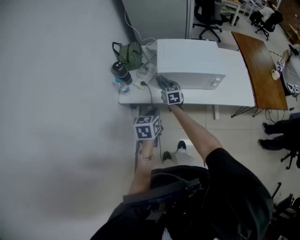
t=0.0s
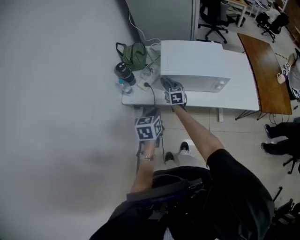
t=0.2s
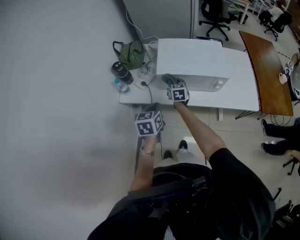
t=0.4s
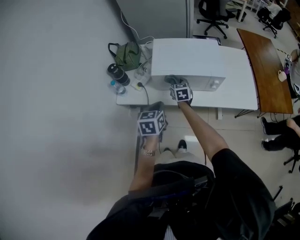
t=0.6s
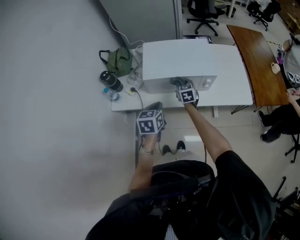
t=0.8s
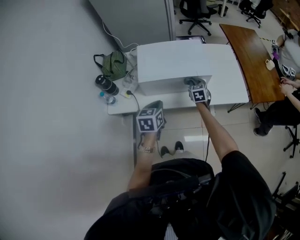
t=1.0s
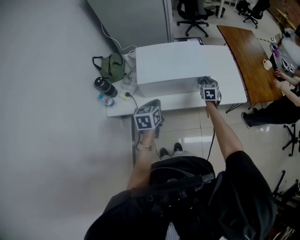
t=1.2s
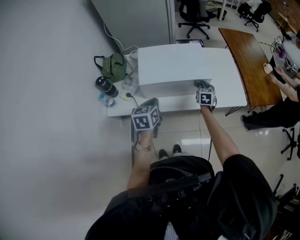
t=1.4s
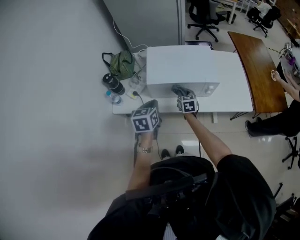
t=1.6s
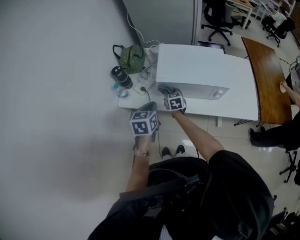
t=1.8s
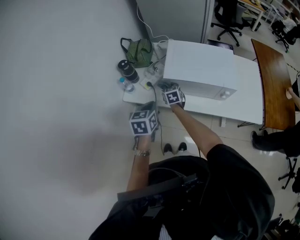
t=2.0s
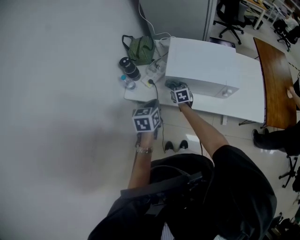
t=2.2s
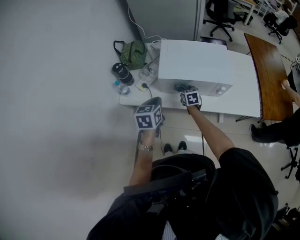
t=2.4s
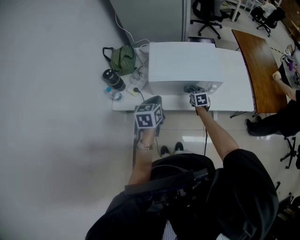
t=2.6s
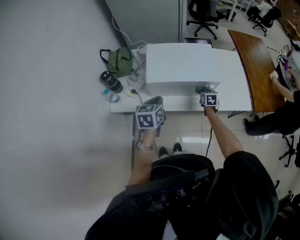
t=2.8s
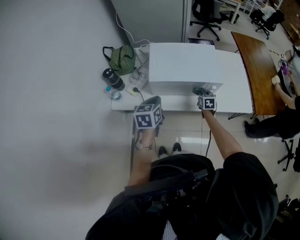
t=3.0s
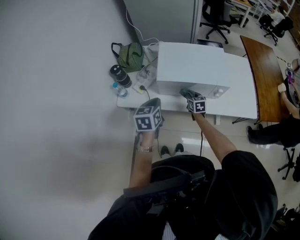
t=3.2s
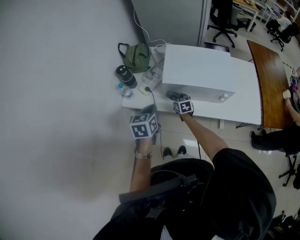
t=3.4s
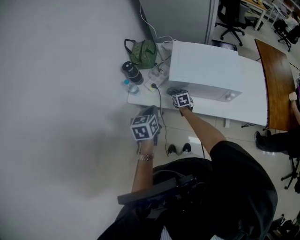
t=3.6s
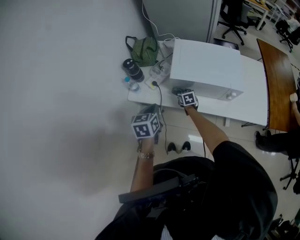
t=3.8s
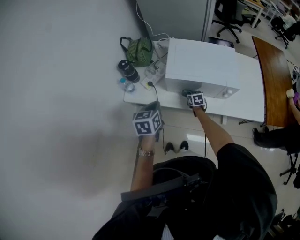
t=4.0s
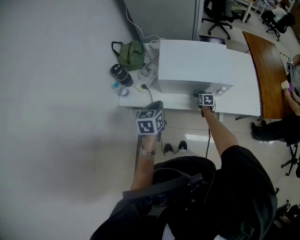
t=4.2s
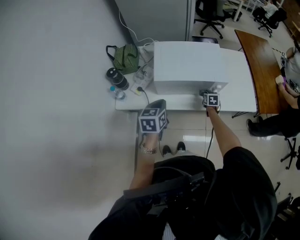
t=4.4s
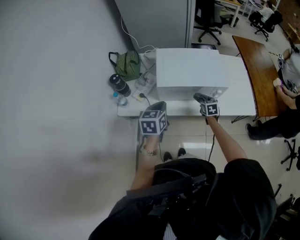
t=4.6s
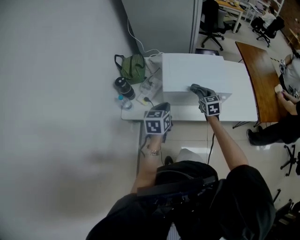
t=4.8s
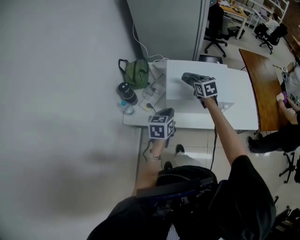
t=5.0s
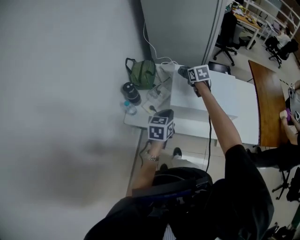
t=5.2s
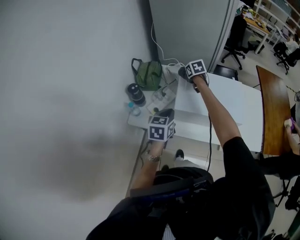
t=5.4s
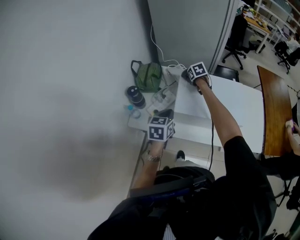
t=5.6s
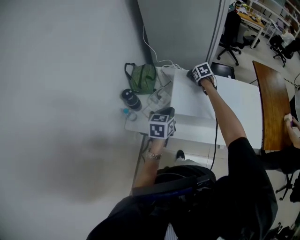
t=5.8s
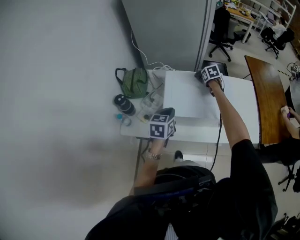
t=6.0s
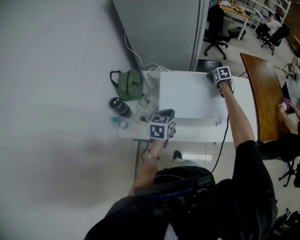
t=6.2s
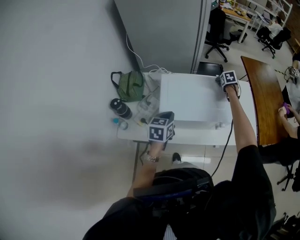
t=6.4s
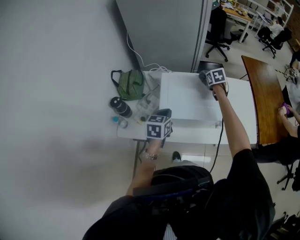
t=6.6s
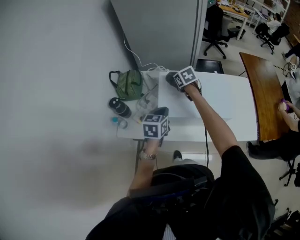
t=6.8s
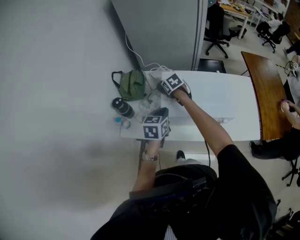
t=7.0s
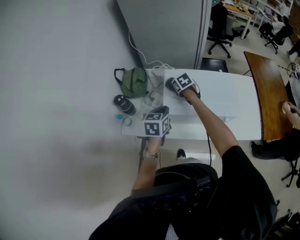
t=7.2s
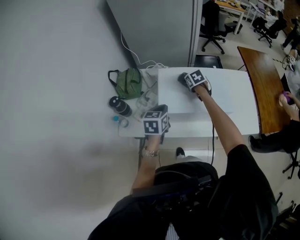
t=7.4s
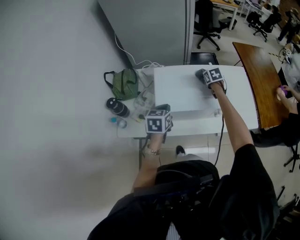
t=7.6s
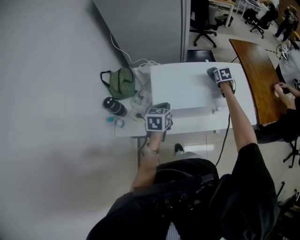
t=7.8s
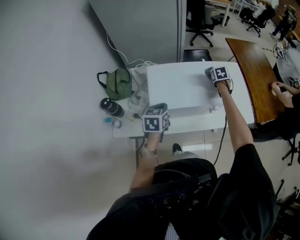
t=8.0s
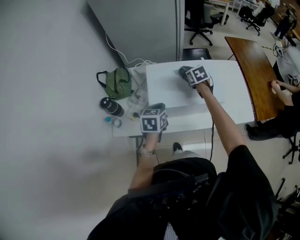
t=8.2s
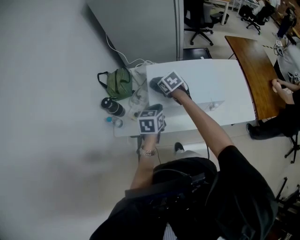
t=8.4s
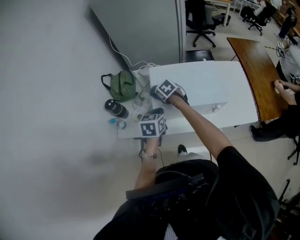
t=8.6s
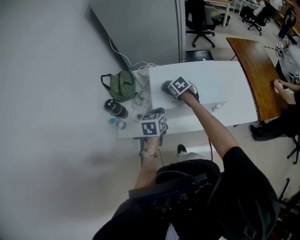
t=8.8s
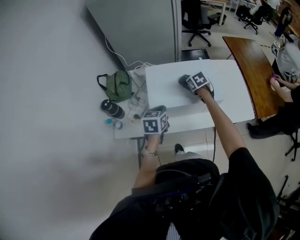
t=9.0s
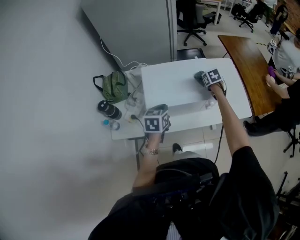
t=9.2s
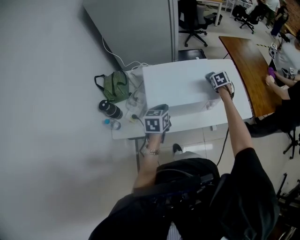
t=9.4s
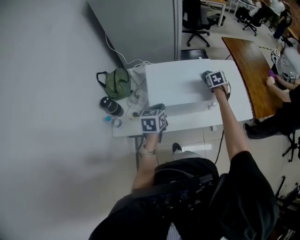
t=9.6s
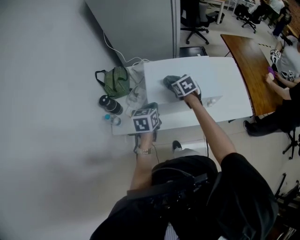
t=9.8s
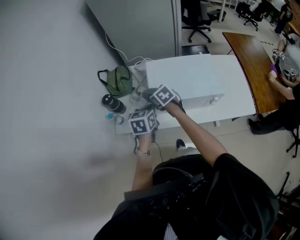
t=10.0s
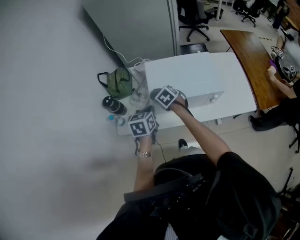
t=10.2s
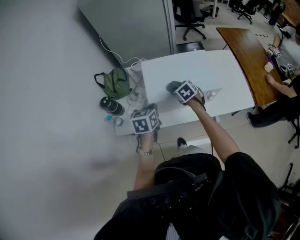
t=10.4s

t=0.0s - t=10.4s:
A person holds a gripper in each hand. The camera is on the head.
t=0.0s - t=1.4s: The right gripper shifts approximately 35 cm to the right, and changes its angle by some 30 degrees. The left gripper goes about 15 cm forward and to the right.
t=1.4s - t=3.0s: The right gripper moves downward, roughly 10 cm.
t=3.0s - t=4.4s: The right gripper is displaced downward by some 5 cm.
t=4.4s - t=6.0s: The left gripper shifts approximately 15 cm forward; the right gripper moves forward and upward, about 35 cm.
t=7.4s - t=9.0s: The left gripper ends up about 5 cm from where it was.

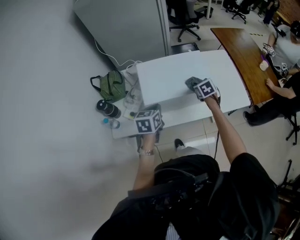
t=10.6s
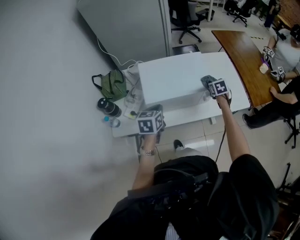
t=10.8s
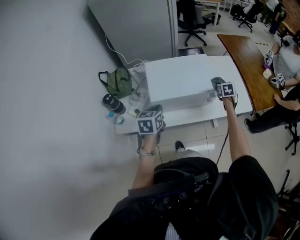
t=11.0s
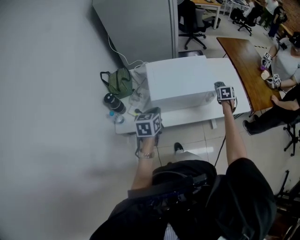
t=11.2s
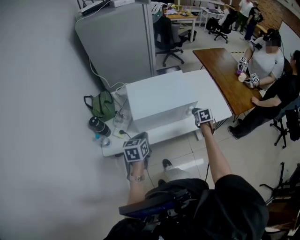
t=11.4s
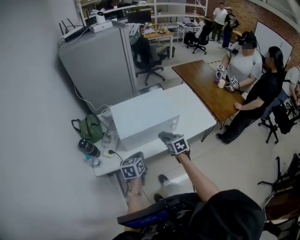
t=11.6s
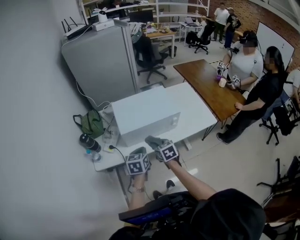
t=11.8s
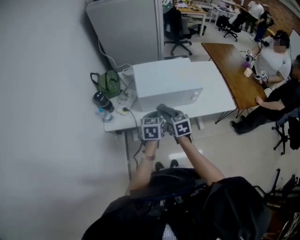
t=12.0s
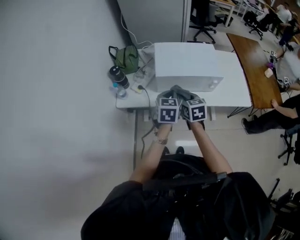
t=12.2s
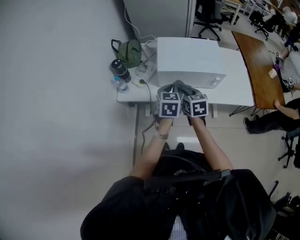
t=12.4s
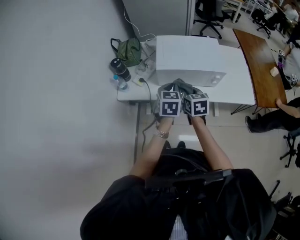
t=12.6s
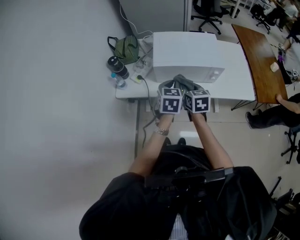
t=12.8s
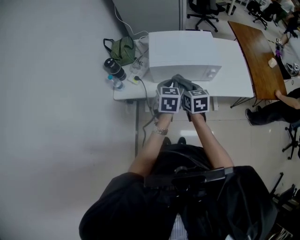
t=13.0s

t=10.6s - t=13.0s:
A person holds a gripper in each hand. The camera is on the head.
t=10.6s - t=11.8s: The left gripper goes some 15 cm backward and to the right; the right gripper moves backward, approximately 25 cm, and swivels about 20 degrees.
t=11.8s - t=13.0s: The left gripper changes place by roughly 5 cm.

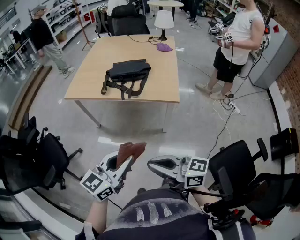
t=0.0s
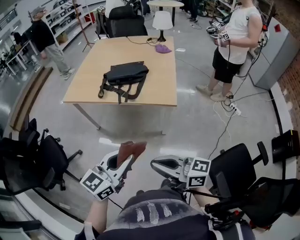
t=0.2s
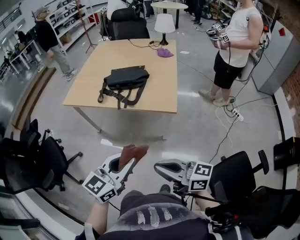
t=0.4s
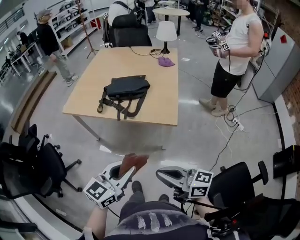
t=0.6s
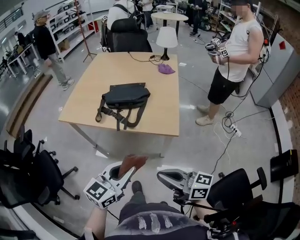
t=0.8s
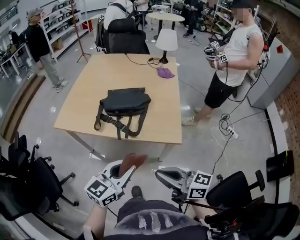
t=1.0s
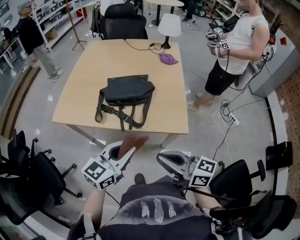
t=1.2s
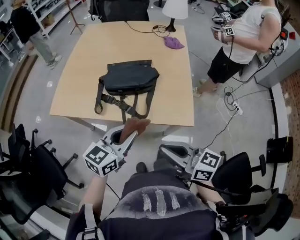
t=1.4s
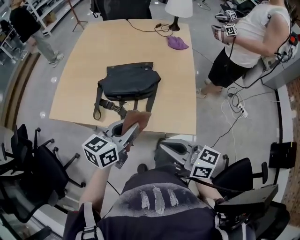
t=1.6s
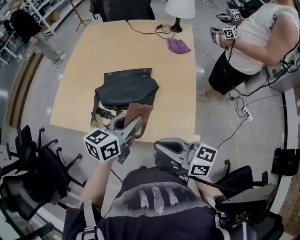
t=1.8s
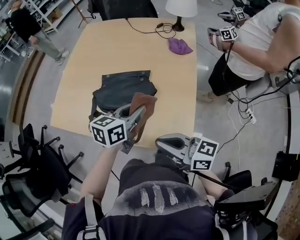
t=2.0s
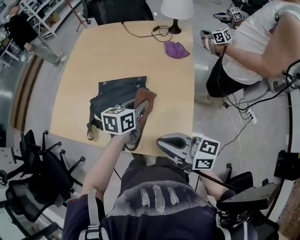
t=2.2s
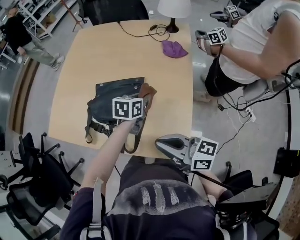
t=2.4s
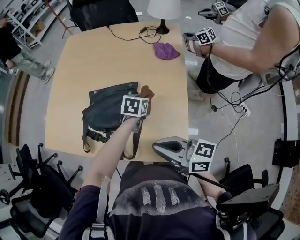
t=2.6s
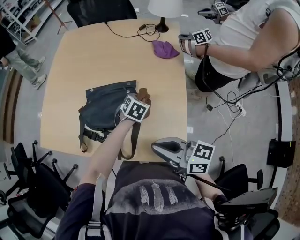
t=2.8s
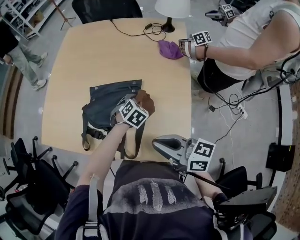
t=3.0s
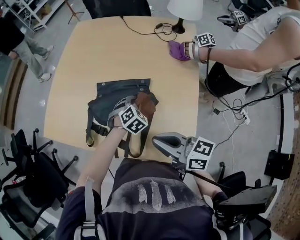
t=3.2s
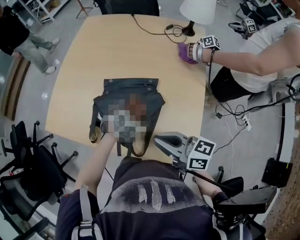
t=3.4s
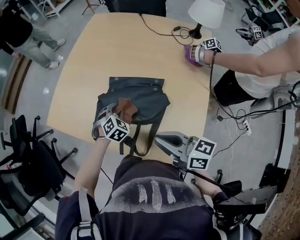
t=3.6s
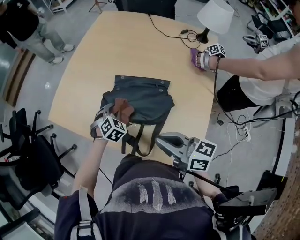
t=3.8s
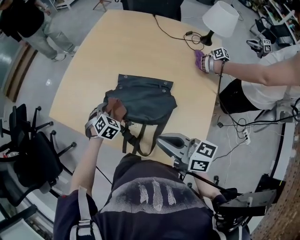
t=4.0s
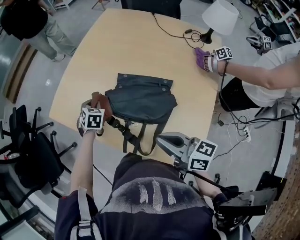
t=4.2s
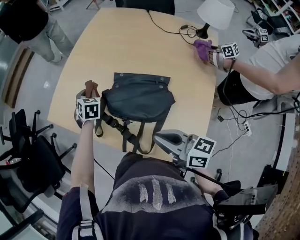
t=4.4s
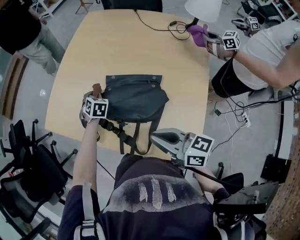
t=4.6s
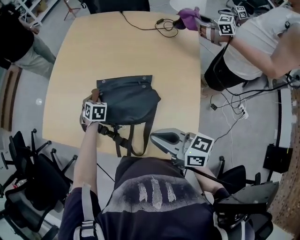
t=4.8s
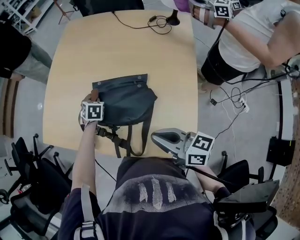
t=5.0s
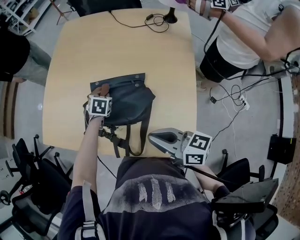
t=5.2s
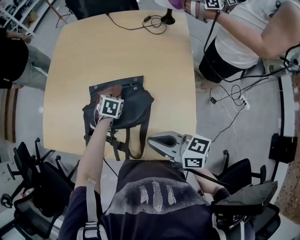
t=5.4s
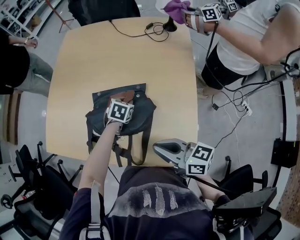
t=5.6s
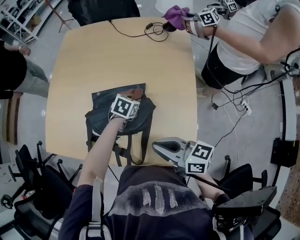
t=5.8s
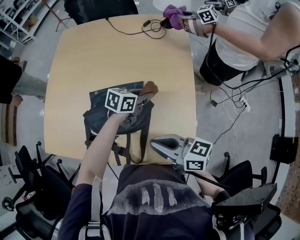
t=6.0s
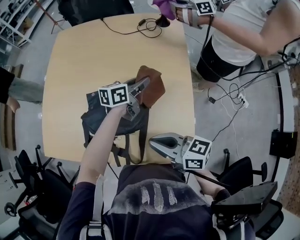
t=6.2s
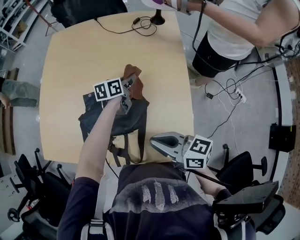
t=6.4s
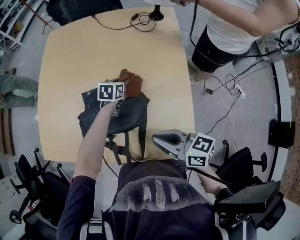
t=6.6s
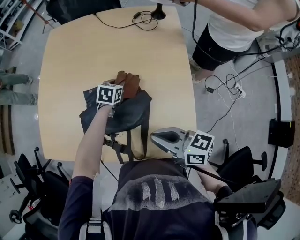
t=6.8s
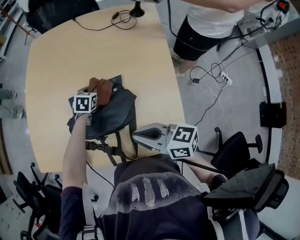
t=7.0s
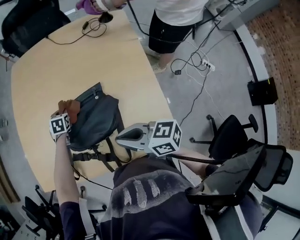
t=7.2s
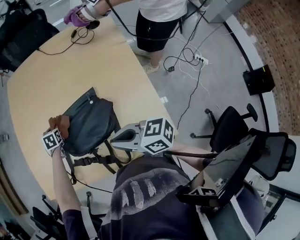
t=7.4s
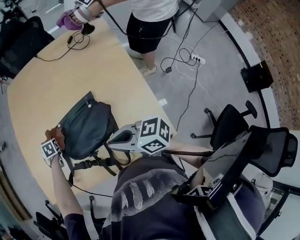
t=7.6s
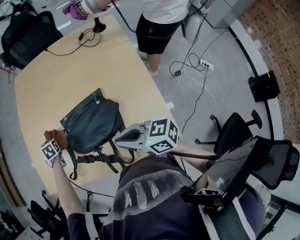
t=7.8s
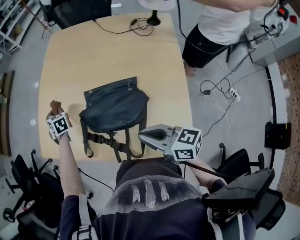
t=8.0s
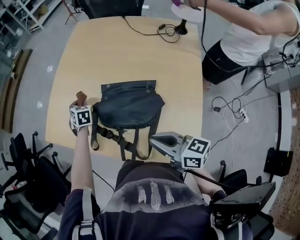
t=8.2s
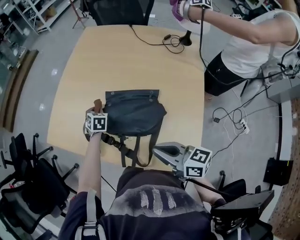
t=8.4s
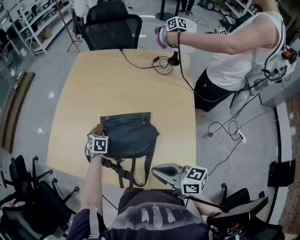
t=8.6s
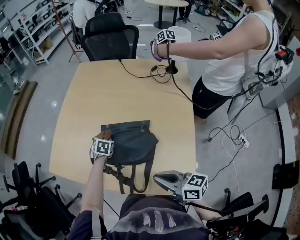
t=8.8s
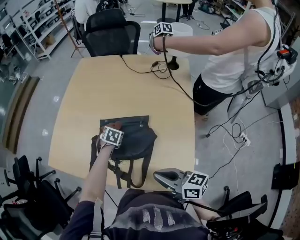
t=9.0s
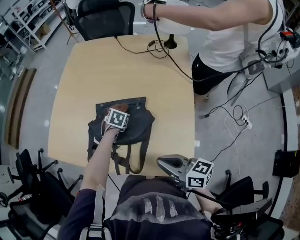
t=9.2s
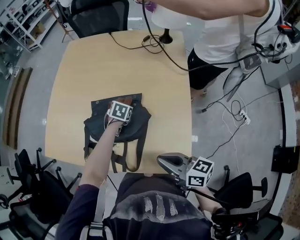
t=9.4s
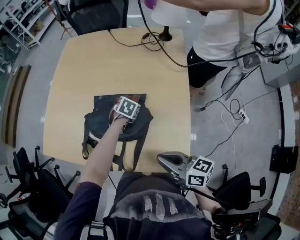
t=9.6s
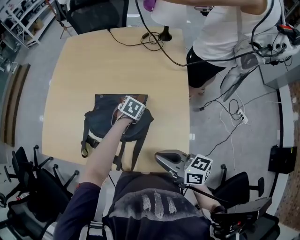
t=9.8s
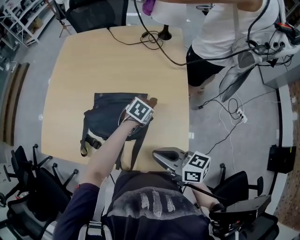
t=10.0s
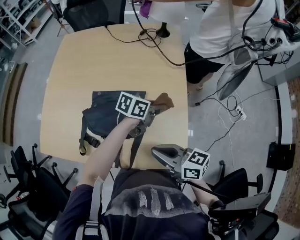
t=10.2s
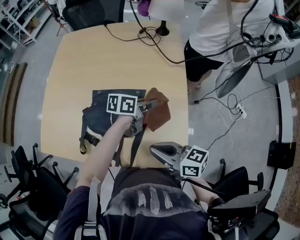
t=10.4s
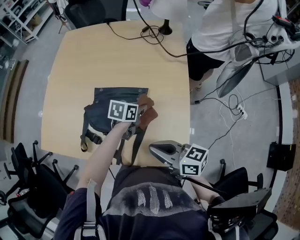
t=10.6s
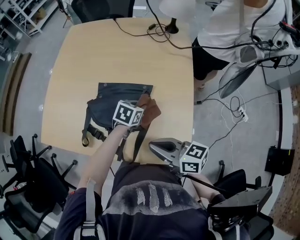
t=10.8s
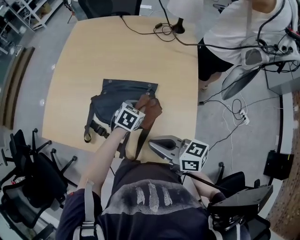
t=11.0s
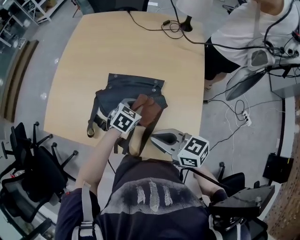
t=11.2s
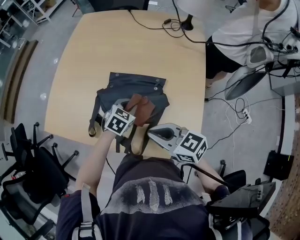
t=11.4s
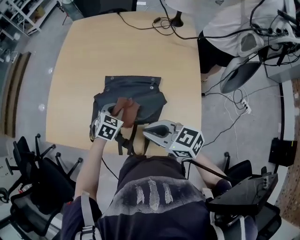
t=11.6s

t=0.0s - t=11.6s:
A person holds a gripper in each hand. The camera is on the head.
t=0.0s - t=1.4s: The grippers both shift forward by approximately 35 cm.
t=1.4s - t=2.8s: The right gripper goes about 25 cm forward and to the right. The left gripper goes some 50 cm forward, to the right and downward, and tilts its fingers about 40 degrees downward.
t=2.8s - t=4.4s: The left gripper shifts by roughly 40 cm, and turns by some 40 degrees. Meanwhile the right gripper changes place by approximately 10 cm.
t=4.4s - t=5.8s: The left gripper moves some 35 cm, and changes its angle by roughly 50 degrees. Meanwhile the right gripper moves roughly 5 cm.
t=5.8s - t=7.2s: The left gripper moves approximately 10 cm upward and comes back, and changes its angle by roughly 20 degrees; the right gripper changes place by about 5 cm.
t=7.2s - t=8.8s: Both grippers move backward, roughly 5 cm. The left gripper travels to the left and back again, some 20 cm each way.
t=8.8s - t=10.2s: The left gripper moves some 35 cm, and rotates approximately 60 degrees.
t=10.2s - t=11.6s: The left gripper changes place by about 30 cm, and changes its angle by roughly 50 degrees. The right gripper changes place by approximately 10 cm, and turns by roughly 30 degrees.
